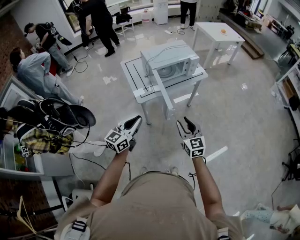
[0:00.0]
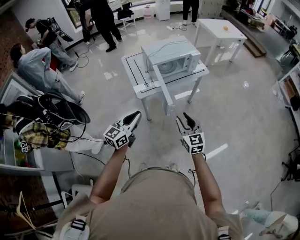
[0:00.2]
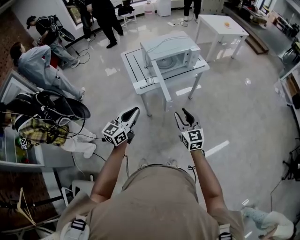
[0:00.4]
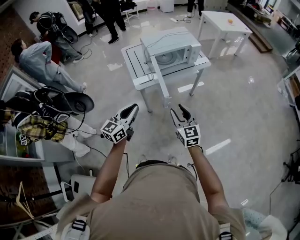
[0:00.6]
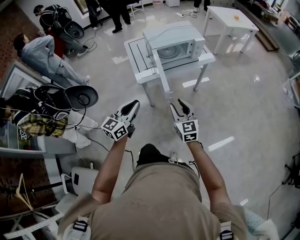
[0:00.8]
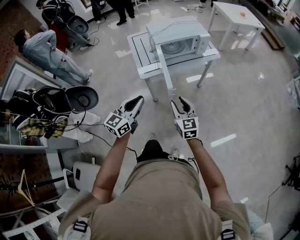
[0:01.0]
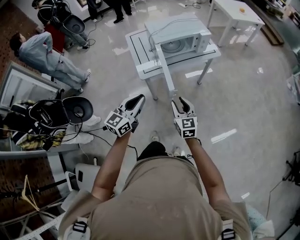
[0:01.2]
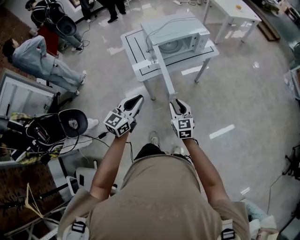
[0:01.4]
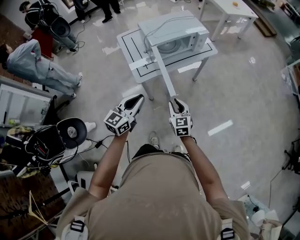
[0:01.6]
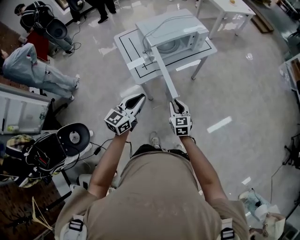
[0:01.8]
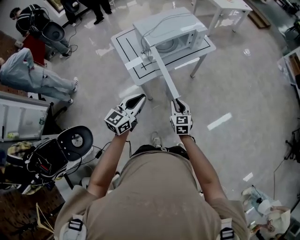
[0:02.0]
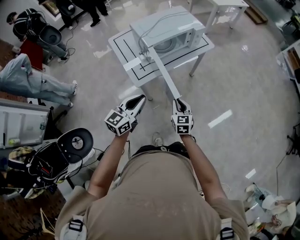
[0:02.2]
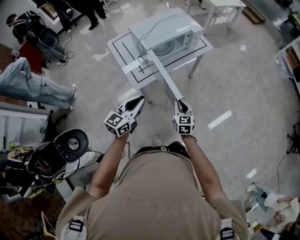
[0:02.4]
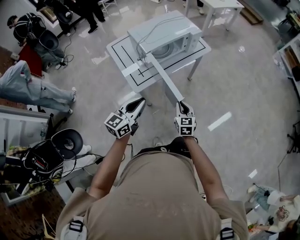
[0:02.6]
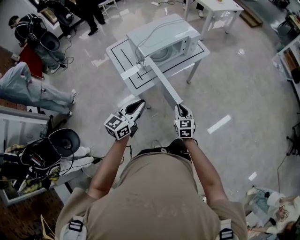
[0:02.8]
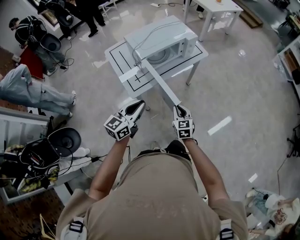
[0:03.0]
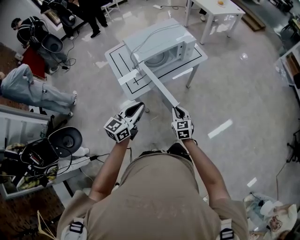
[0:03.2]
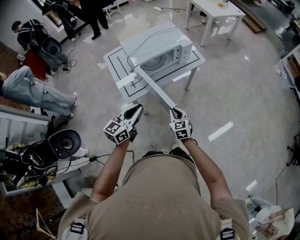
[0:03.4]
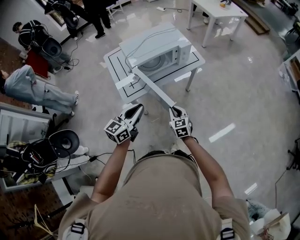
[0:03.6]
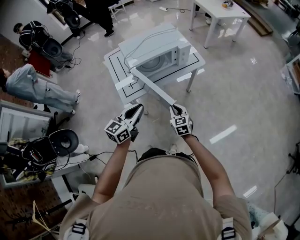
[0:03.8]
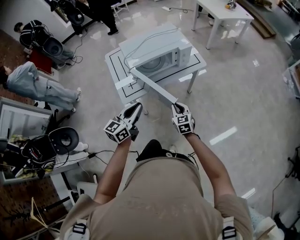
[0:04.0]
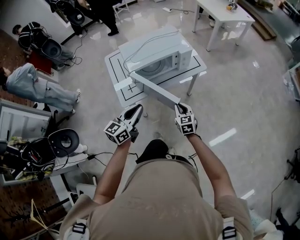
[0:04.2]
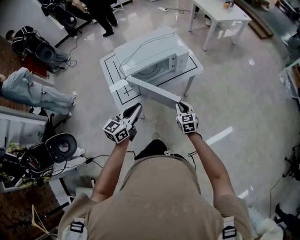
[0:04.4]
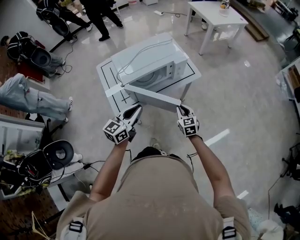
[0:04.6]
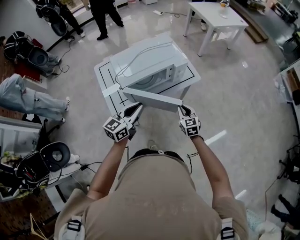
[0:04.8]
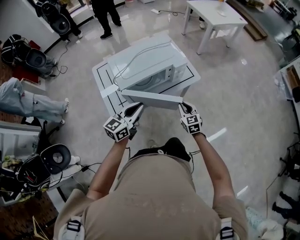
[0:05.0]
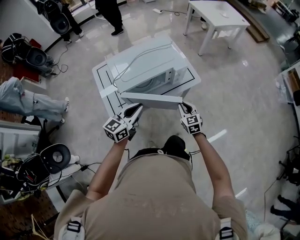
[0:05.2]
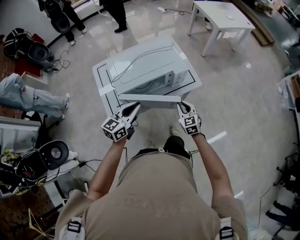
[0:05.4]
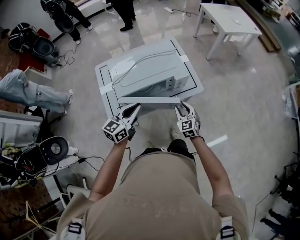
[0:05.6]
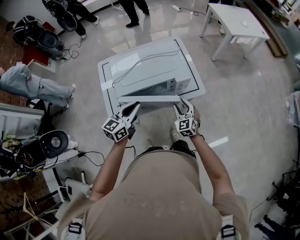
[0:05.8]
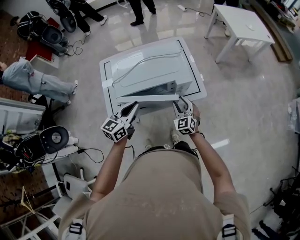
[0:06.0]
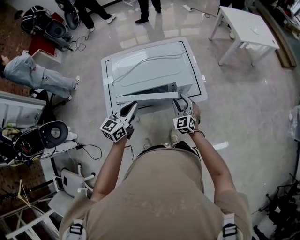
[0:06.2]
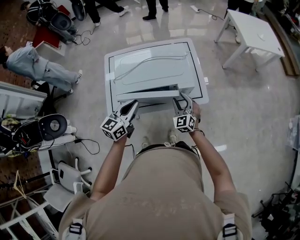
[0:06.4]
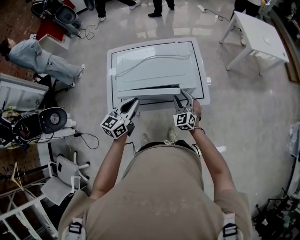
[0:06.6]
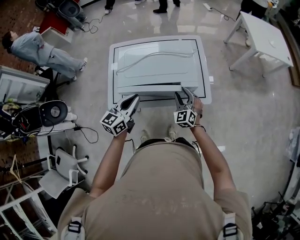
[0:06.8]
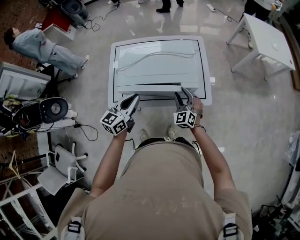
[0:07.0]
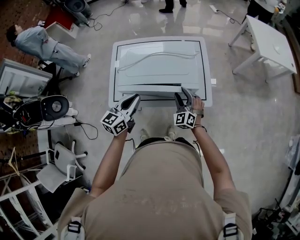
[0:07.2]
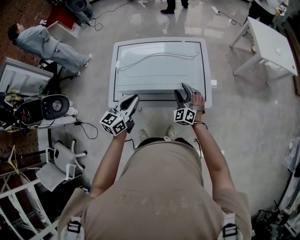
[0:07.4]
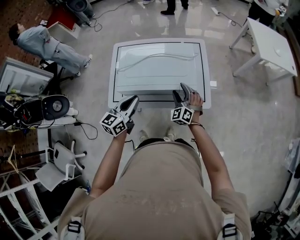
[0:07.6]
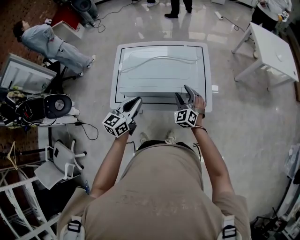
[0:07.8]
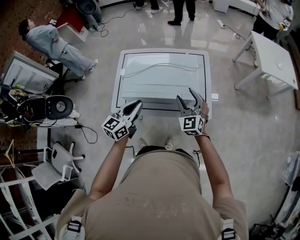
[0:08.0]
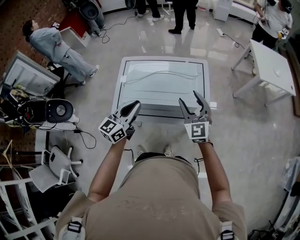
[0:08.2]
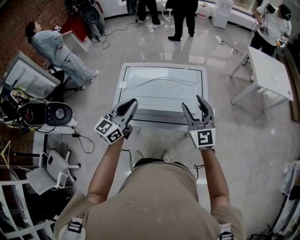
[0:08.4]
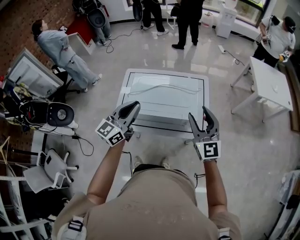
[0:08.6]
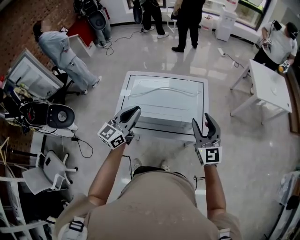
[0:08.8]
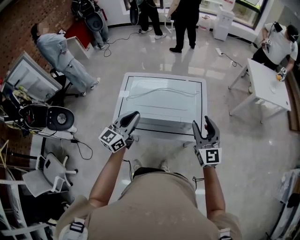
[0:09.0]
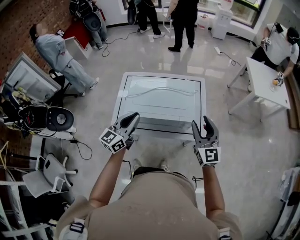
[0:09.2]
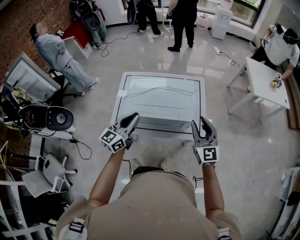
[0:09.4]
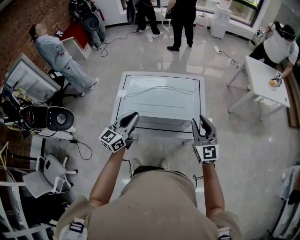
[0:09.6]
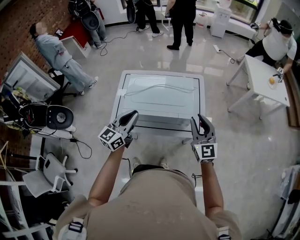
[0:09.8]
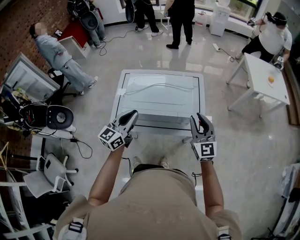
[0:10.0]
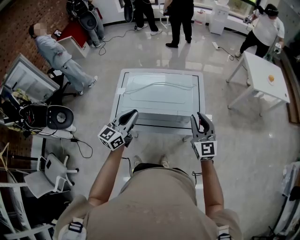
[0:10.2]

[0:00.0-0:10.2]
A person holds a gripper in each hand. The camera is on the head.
0:00.0 to 0:01.4: The left gripper shifts about 5 cm forward; the right gripper travels downward and forward by approximately 10 cm.
0:01.4 to 0:03.0: The right gripper heads forward and downward, covering approximately 10 cm; the left gripper is displaced forward by roughly 10 cm.
0:03.0 to 0:04.4: The two grippers go about 20 cm forward and to the right.
0:04.4 to 0:05.8: Both grippers move forward, roughly 20 cm. The right gripper changes its angle by approximately 30 degrees, and opens.
0:05.8 to 0:07.2: The right gripper goes approximately 10 cm forward, and changes its angle by approximately 30 degrees.
0:07.2 to 0:08.8: The left gripper moves upward, approximately 15 cm. Meanwhile the right gripper goes roughly 30 cm upward, and swivels approximately 40 degrees.
0:08.8 to 0:10.2: The right gripper shifts by some 5 cm, and closes up.

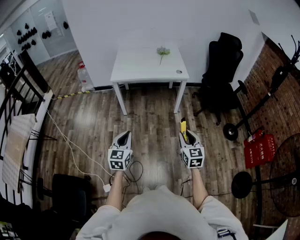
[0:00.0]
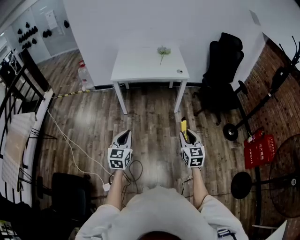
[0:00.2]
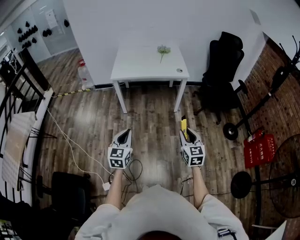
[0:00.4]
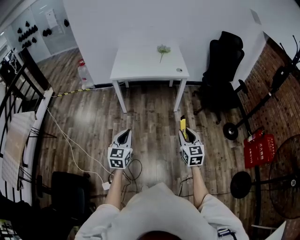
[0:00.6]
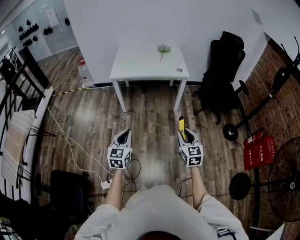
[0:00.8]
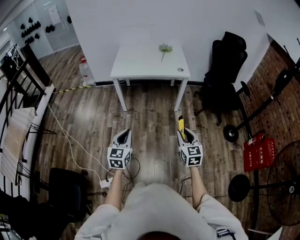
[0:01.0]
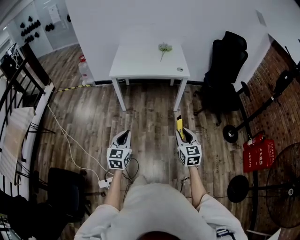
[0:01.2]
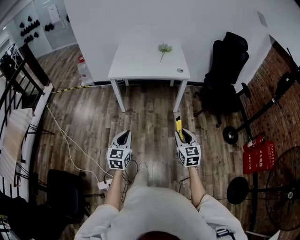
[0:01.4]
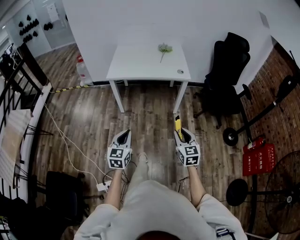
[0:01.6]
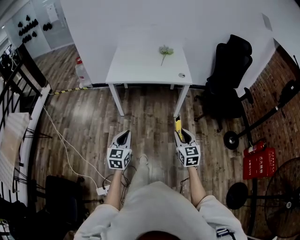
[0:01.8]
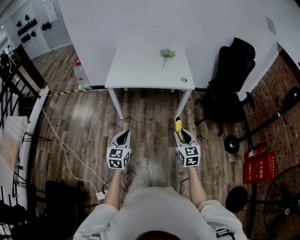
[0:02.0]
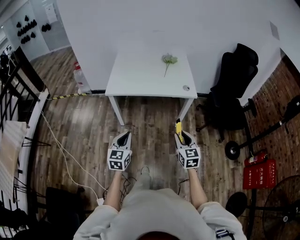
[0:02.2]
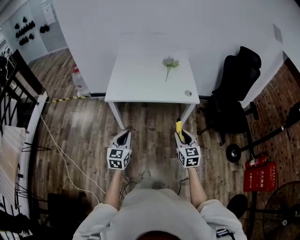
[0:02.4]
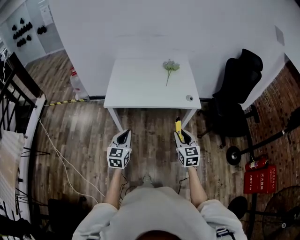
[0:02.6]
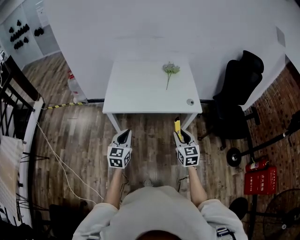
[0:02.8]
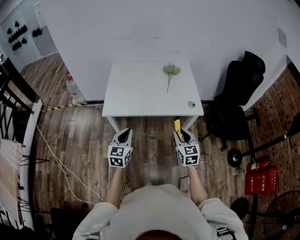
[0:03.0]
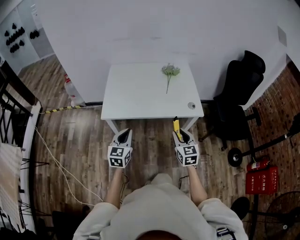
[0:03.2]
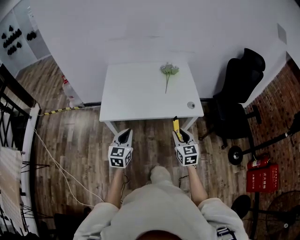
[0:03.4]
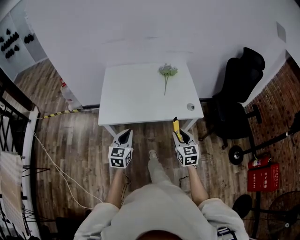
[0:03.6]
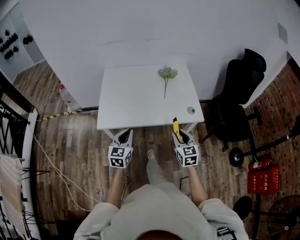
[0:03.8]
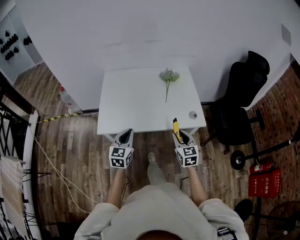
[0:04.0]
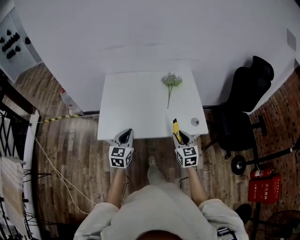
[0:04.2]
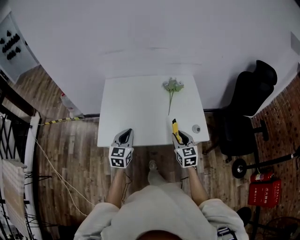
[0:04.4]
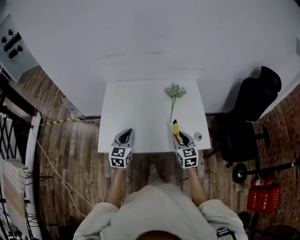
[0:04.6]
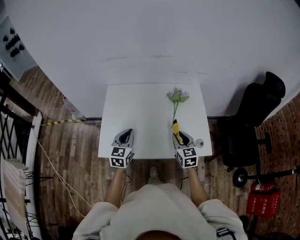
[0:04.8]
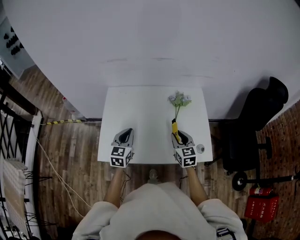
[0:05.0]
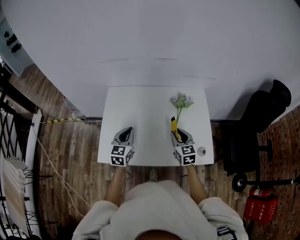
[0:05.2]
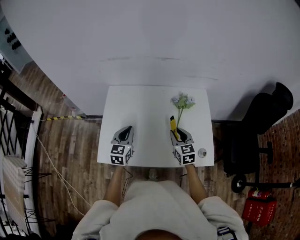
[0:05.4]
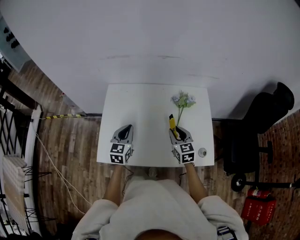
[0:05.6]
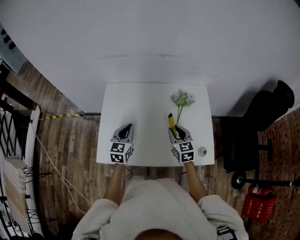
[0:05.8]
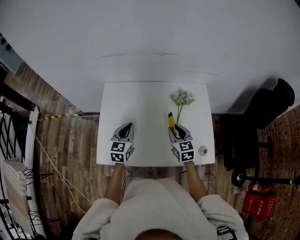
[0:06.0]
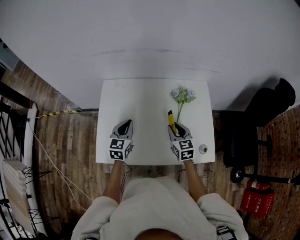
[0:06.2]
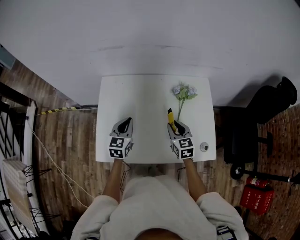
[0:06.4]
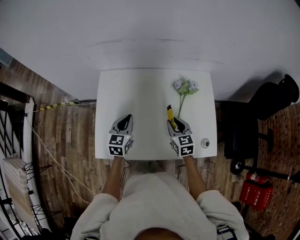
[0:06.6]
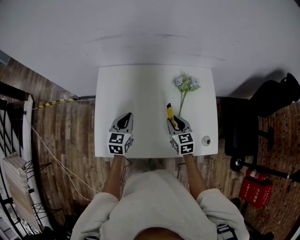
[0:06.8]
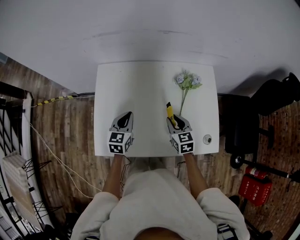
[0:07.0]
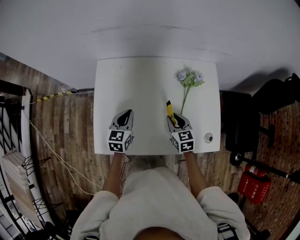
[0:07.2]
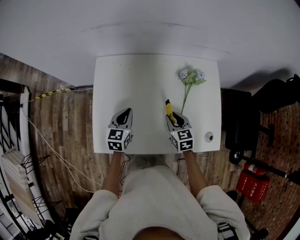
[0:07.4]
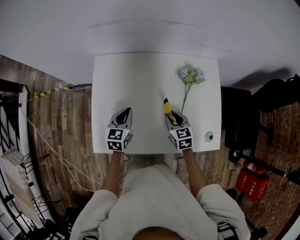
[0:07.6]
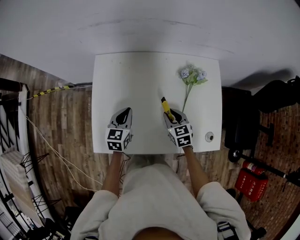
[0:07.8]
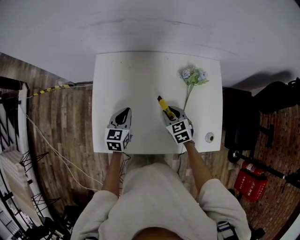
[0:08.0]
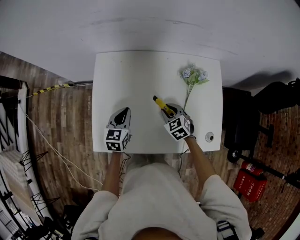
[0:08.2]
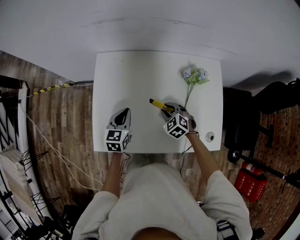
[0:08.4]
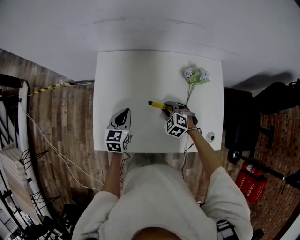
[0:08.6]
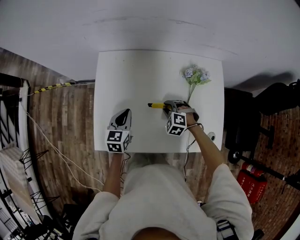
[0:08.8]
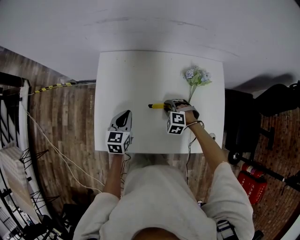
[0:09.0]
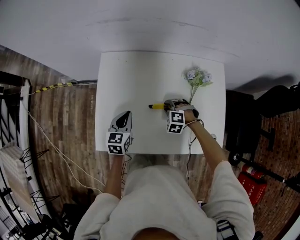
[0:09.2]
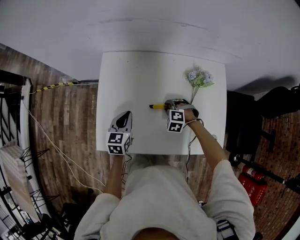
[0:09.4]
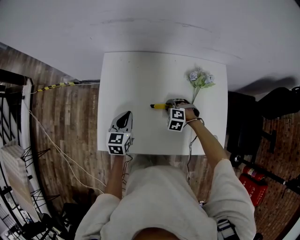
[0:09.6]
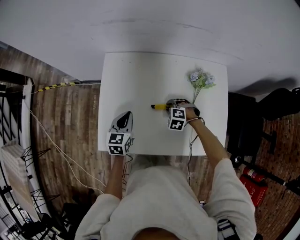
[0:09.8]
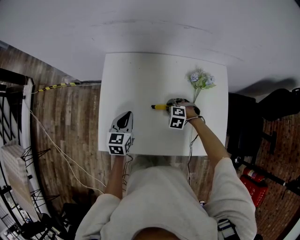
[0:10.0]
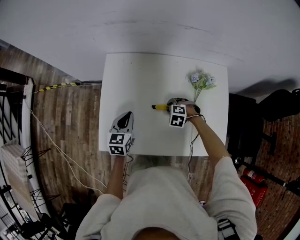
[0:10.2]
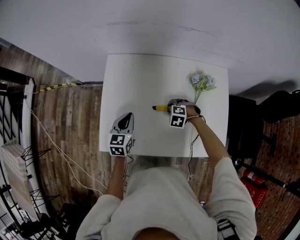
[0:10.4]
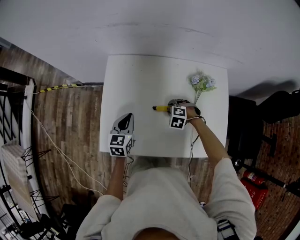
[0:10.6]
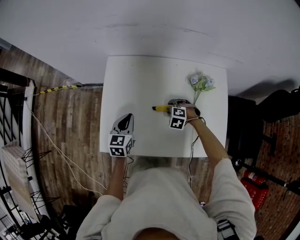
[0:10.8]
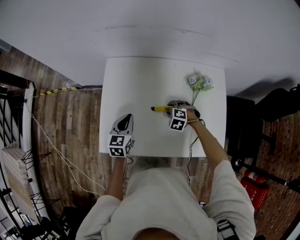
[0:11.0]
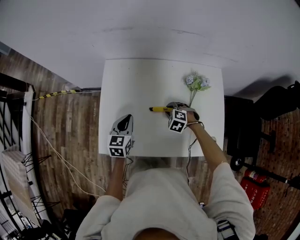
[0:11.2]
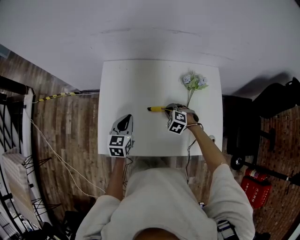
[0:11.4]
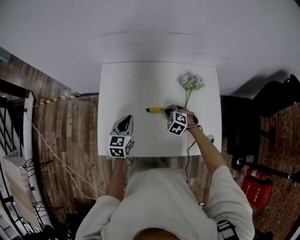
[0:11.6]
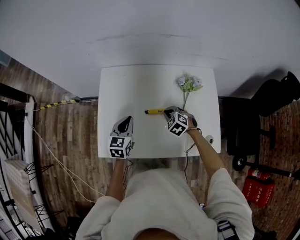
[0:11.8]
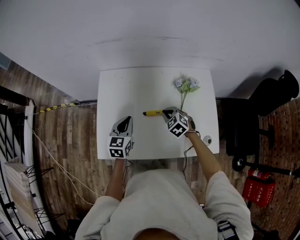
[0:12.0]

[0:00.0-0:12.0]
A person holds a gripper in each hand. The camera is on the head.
0:00.0 to 0:01.6: Both grippers travel together forward, some 10 cm.
0:01.6 to 0:03.0: The pair of grippers is taken forward, roughly 40 cm.
0:03.0 to 0:04.4: Both grippers travel together forward, some 25 cm.
0:04.4 to 0:06.0: The two grippers go about 20 cm forward.
0:06.0 to 0:07.6: The grippers both shift downward by roughly 10 cm.
0:07.6 to 0:09.0: The right gripper goes approximately 5 cm downward, and twists some 70 degrees counterclockwise, seen from behind.
0:09.0 to 0:10.4: The grippers stay close to where they were, moving slightly.
0:10.4 to 0:12.0: The left gripper is displaced upward by some 5 cm. The right gripper moves upward, about 10 cm, turns by roughly 40 degrees, and closes its fingers.

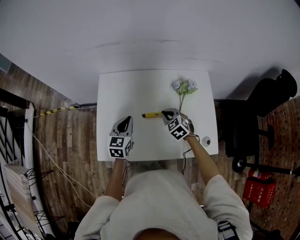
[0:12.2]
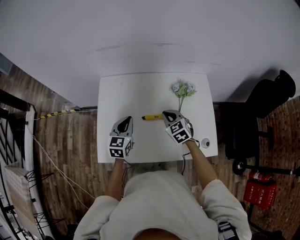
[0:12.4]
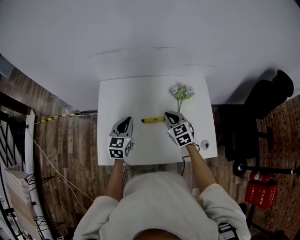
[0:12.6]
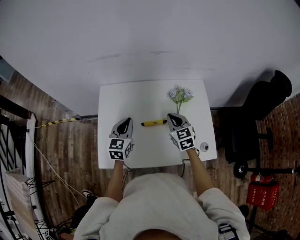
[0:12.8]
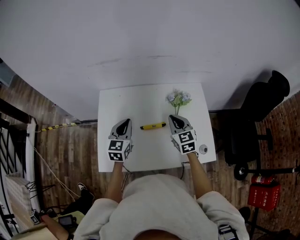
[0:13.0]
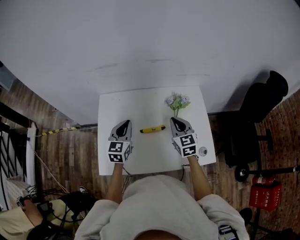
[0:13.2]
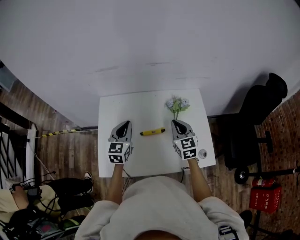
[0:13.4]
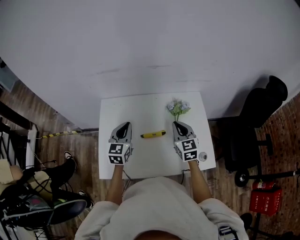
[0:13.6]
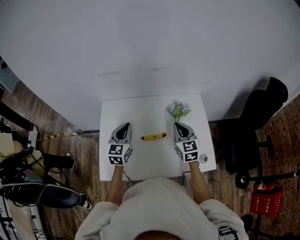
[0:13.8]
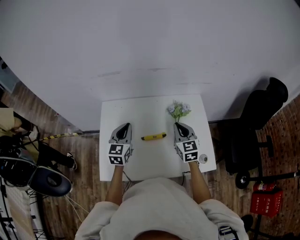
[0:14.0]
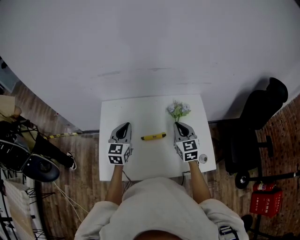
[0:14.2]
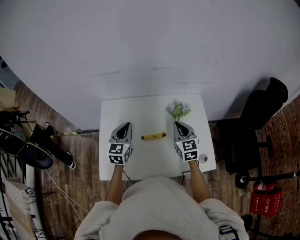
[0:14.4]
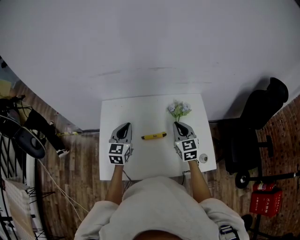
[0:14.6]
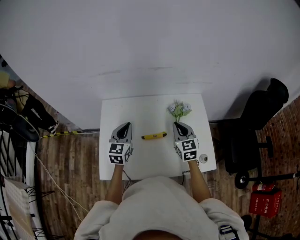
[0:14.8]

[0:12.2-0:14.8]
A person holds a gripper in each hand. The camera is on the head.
0:12.2 to 0:13.4: The left gripper shifts some 10 cm upward; the right gripper shifts some 15 cm upward and to the right, and swivels about 40 degrees.
0:13.4 to 0:14.8: The grippers stay close to where they were, moving slightly.
